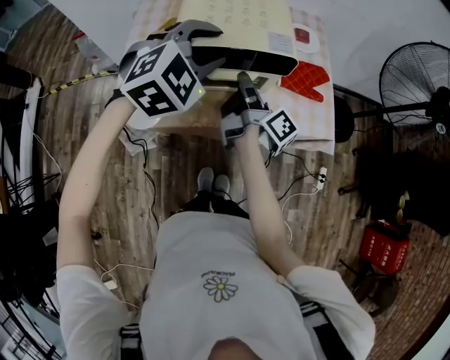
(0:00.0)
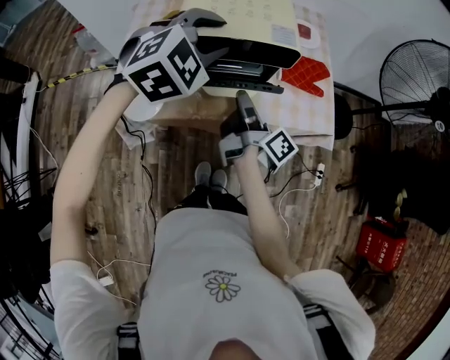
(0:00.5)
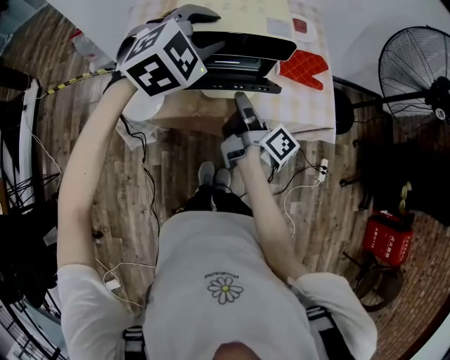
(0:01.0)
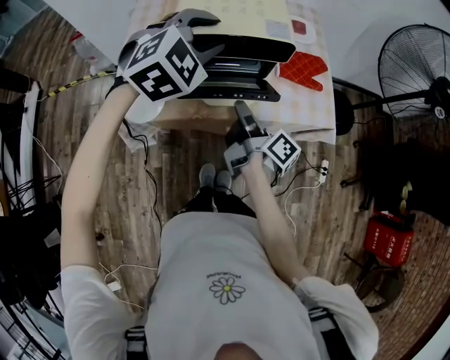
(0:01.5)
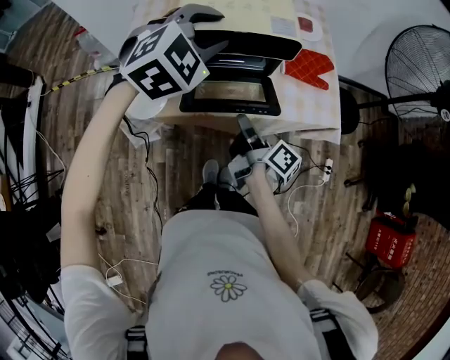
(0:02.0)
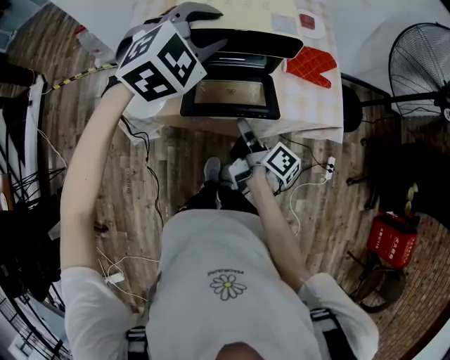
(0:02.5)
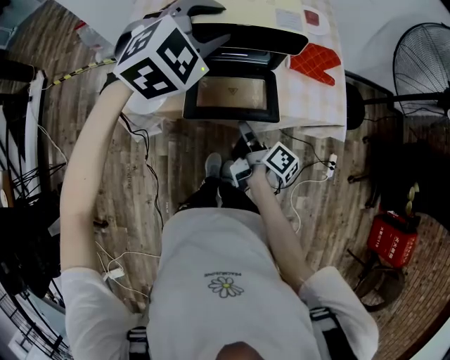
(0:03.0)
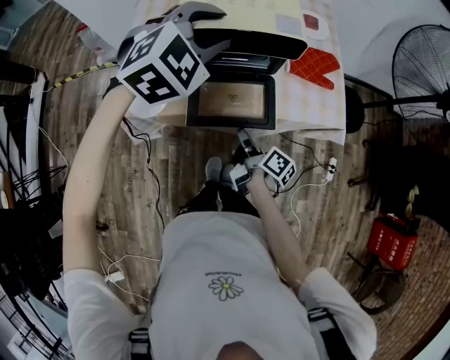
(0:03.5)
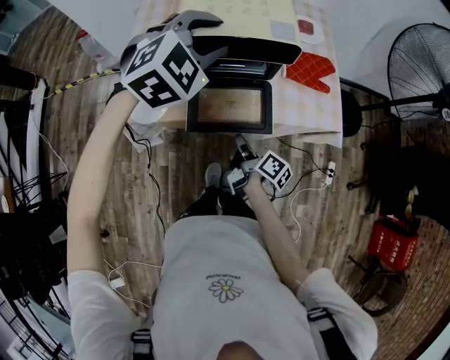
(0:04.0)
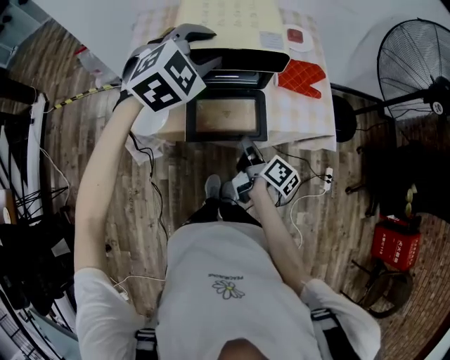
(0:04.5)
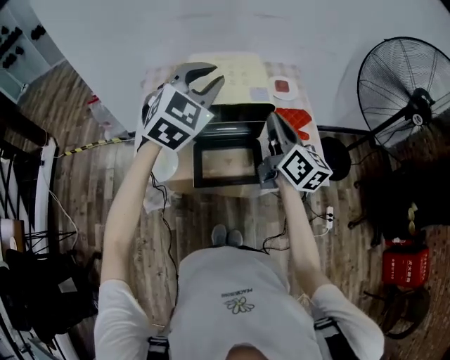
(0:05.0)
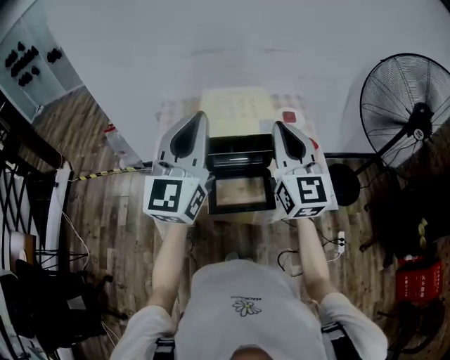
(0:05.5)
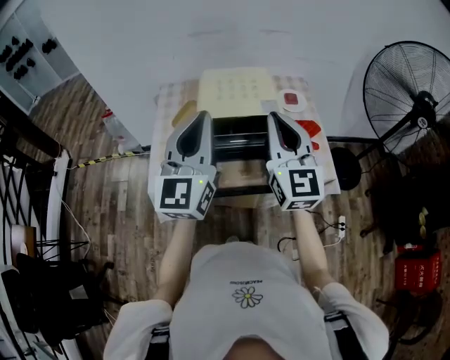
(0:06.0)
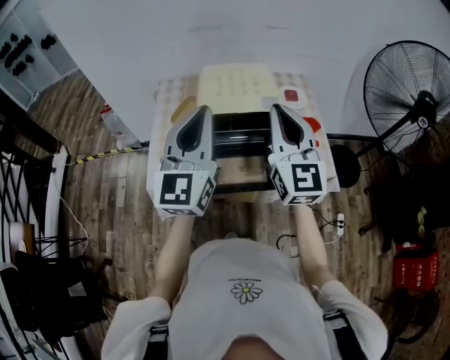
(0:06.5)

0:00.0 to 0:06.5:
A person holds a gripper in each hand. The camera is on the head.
0:00.0 to 0:02.0: The right gripper heads backward and downward, covering roughly 15 cm.
0:02.0 to 0:04.5: The right gripper moves about 10 cm downward and comes back.
0:04.5 to 0:06.5: The right gripper is displaced upward by roughly 35 cm, and rolls counterclockwise, seen from behind, by some 80 degrees; the left gripper goes approximately 15 cm upward and backward, points its fingers some 50 degrees further upward, and closes its fingers.

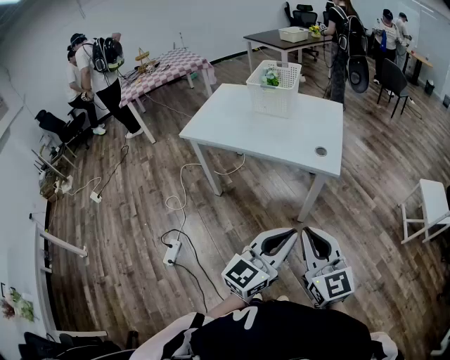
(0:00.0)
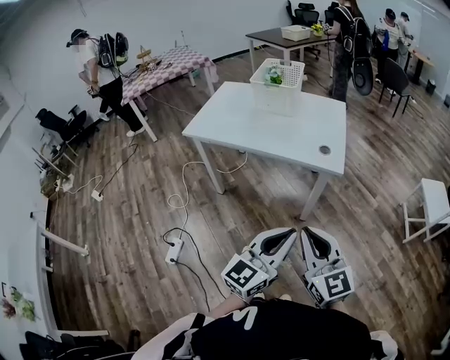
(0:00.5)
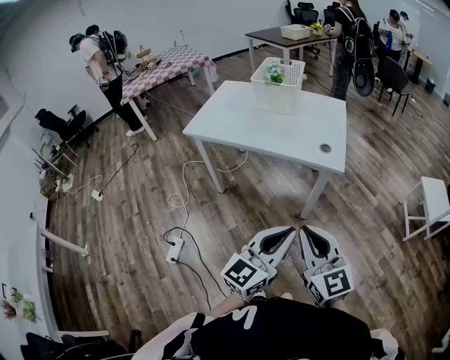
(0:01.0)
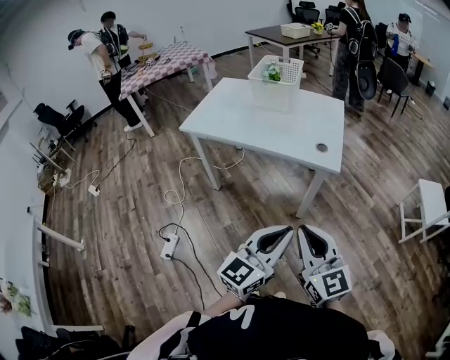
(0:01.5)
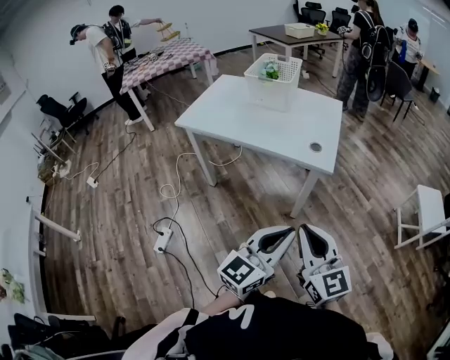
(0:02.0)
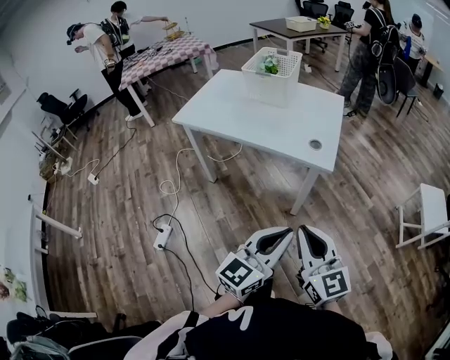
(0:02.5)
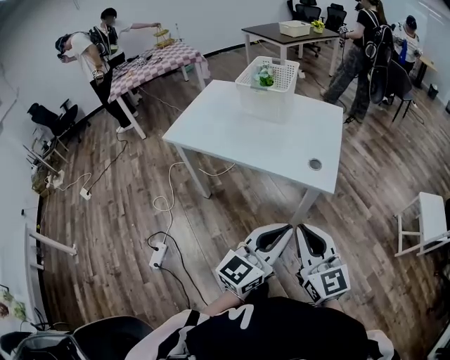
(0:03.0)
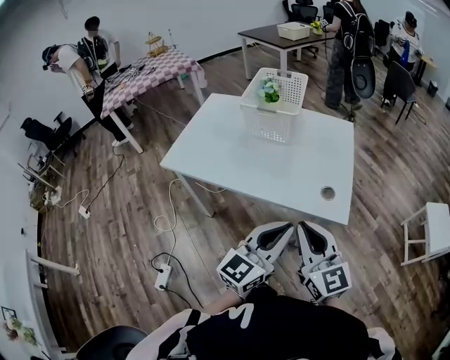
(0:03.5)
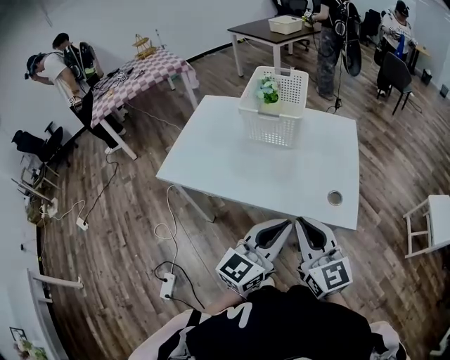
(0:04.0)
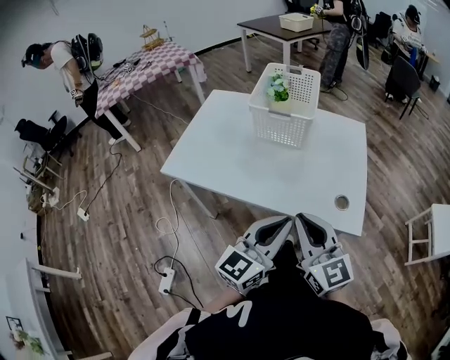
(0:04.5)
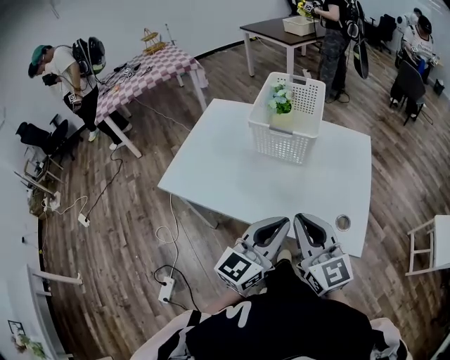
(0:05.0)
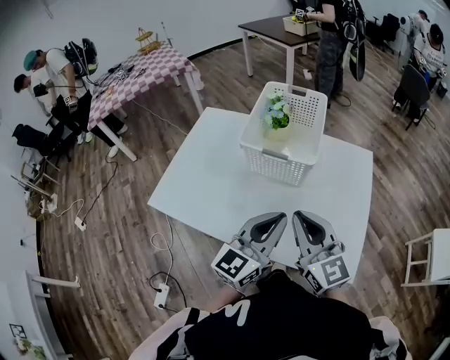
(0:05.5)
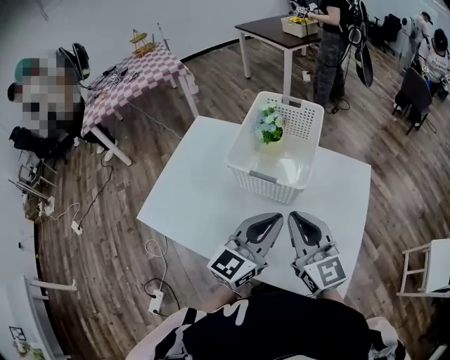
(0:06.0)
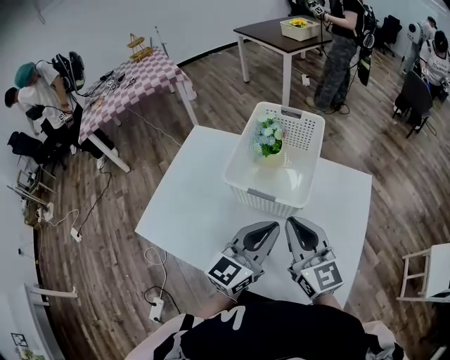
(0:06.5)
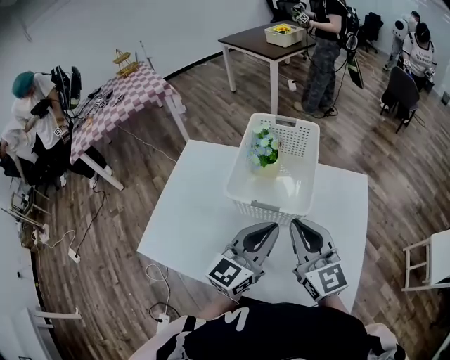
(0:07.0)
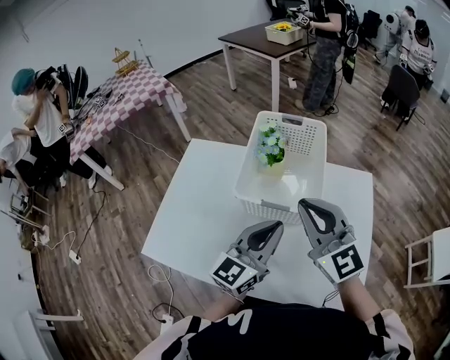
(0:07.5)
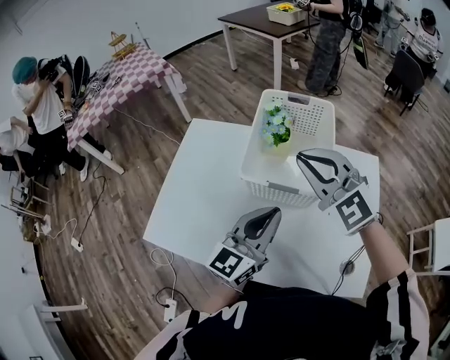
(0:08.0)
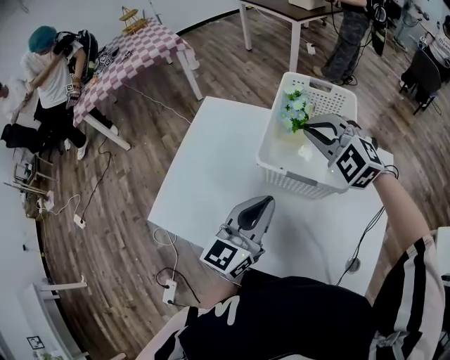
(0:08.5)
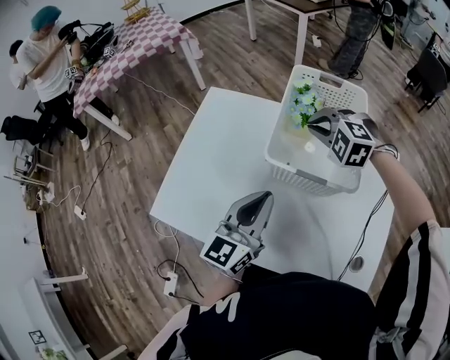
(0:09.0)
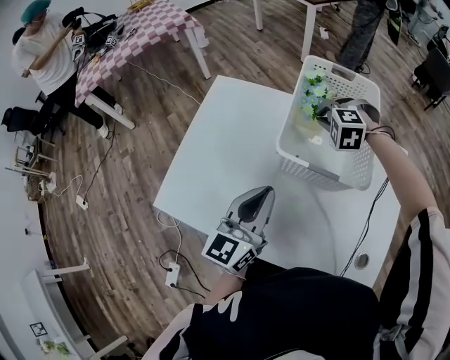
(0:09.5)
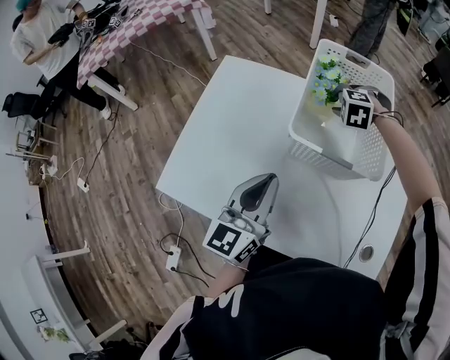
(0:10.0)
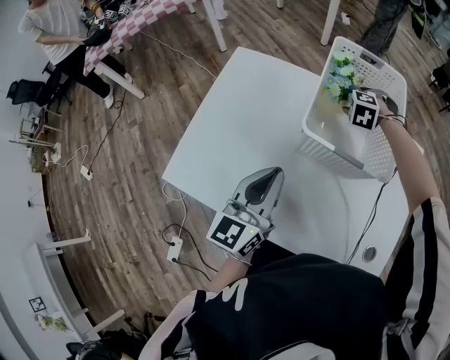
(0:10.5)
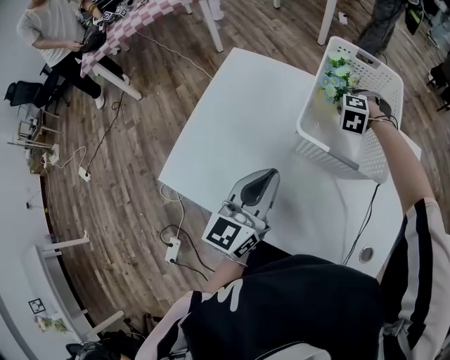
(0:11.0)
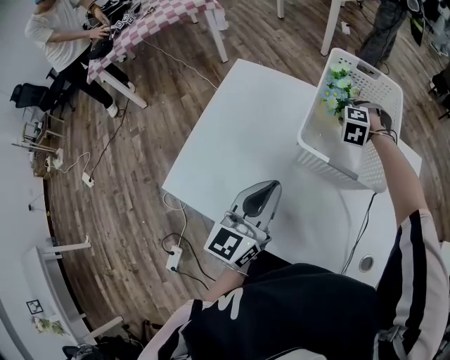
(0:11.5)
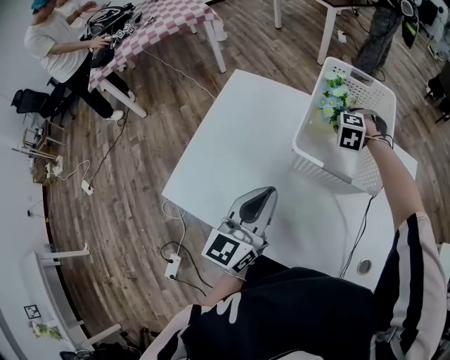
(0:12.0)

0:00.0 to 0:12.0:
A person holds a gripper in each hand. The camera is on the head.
0:00.0 to 0:02.0: There are only small adjustments of the grippers.
0:02.0 to 0:04.0: Both grippers travel together forward and to the left, some 35 cm.
0:04.0 to 0:06.0: The two grippers go some 25 cm forward.
0:06.0 to 0:08.0: The right gripper goes approximately 15 cm forward, to the left and upward, and rotates approximately 40 degrees. Meanwhile the left gripper heads to the left, covering about 5 cm.
0:08.0 to 0:10.0: The right gripper moves downward and forward, roughly 30 cm, tilts its fingers about 60 degrees downward, and opens up. The left gripper goes approximately 10 cm to the left.
0:10.0 to 0:12.0: The grippers make only small movements.

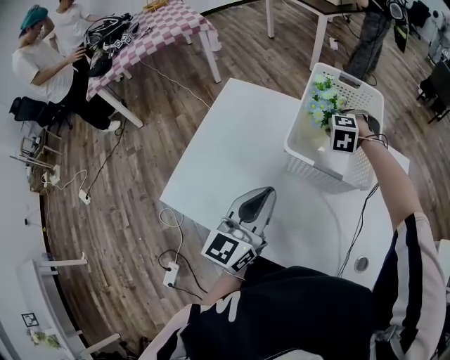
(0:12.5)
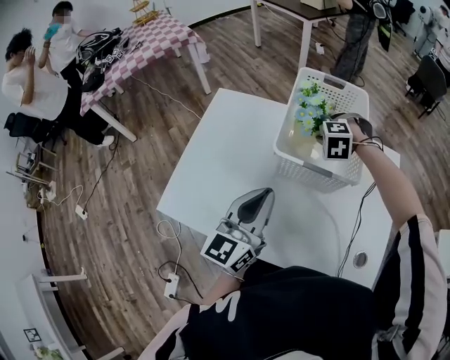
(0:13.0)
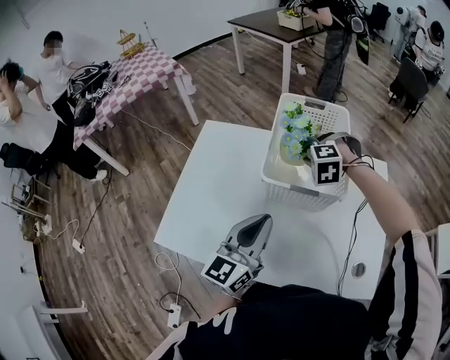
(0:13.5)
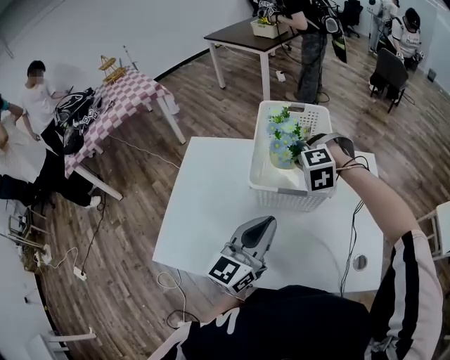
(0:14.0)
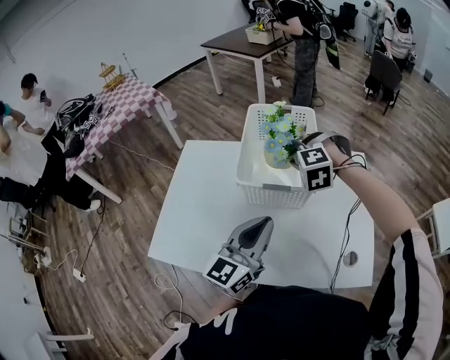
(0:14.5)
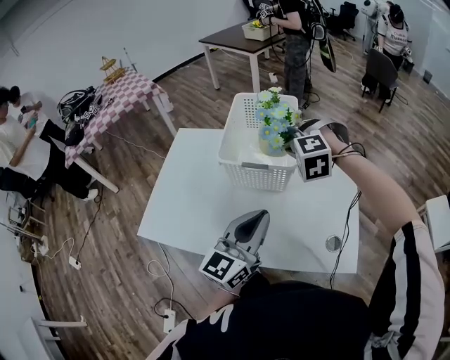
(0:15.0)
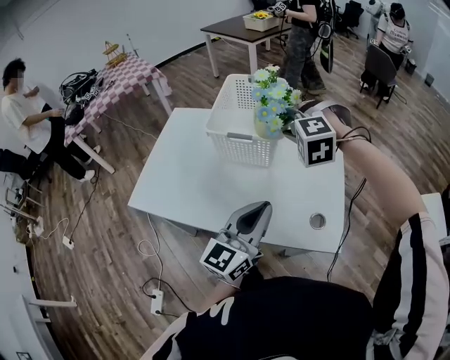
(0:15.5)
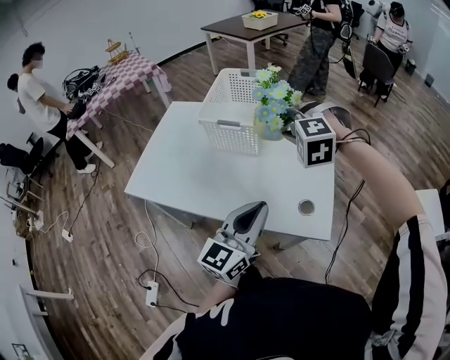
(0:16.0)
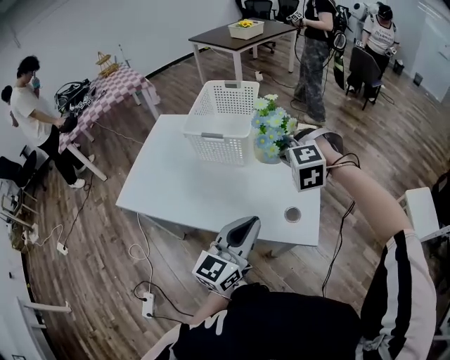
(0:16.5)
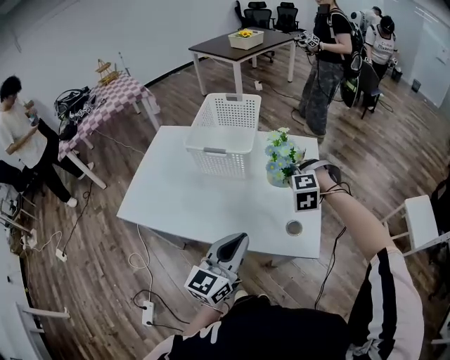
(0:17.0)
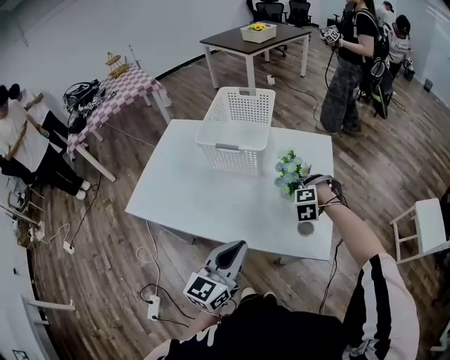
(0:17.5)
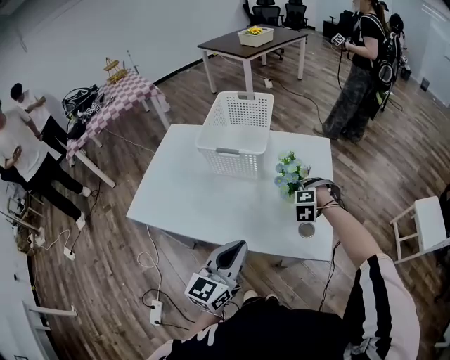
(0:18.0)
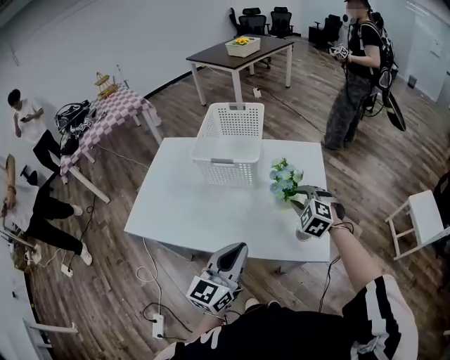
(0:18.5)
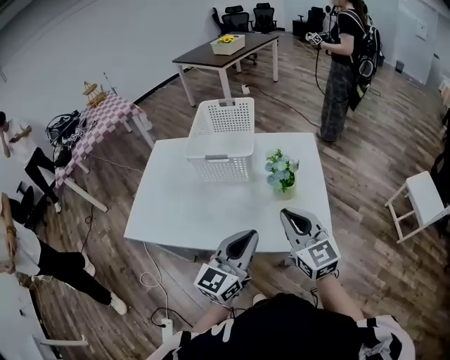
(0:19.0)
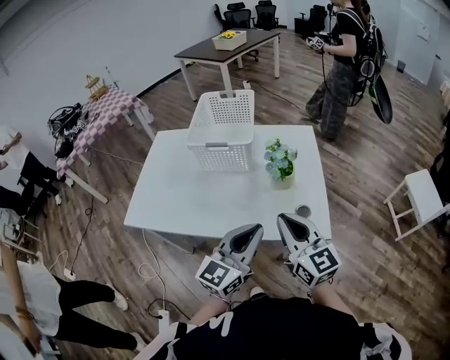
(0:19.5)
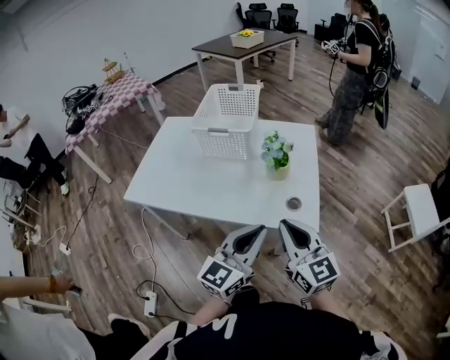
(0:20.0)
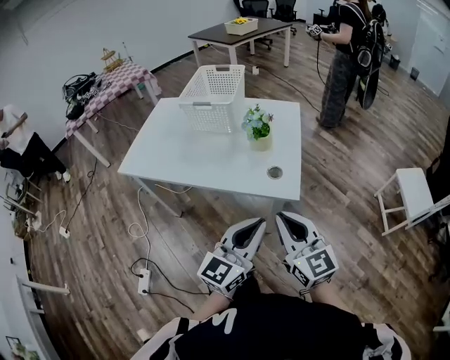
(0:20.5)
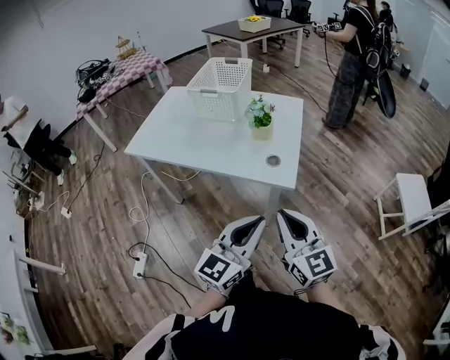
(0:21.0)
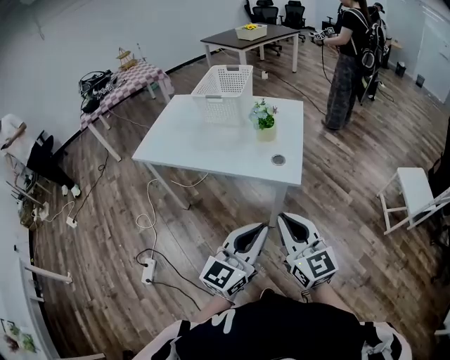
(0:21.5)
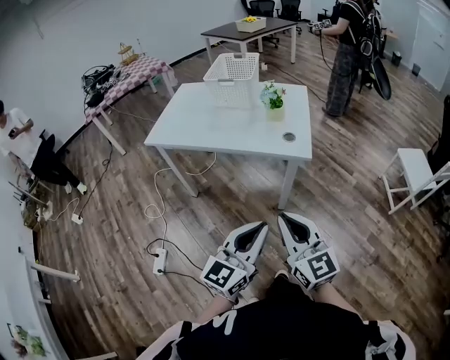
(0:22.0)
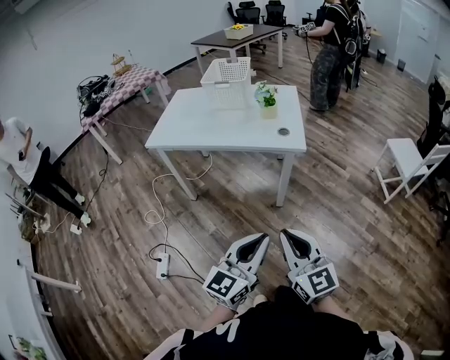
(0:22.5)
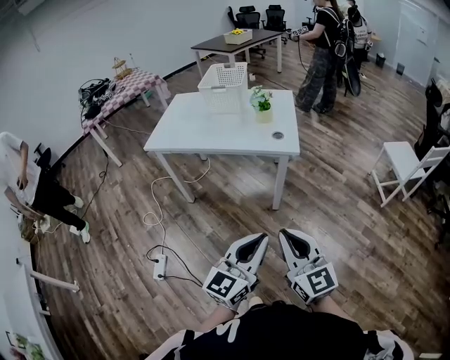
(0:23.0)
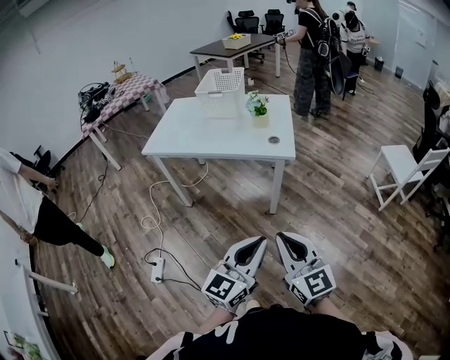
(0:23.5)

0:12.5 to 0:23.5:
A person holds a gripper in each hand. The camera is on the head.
0:12.5 to 0:14.5: The left gripper heads to the right, covering about 10 cm. Meanwhile the right gripper travels upward, backward and to the right by approximately 15 cm.
0:14.5 to 0:16.0: The left gripper moves to the right and backward, about 25 cm. Meanwhile the right gripper is displaced backward and to the right by approximately 20 cm.
0:16.0 to 0:18.0: The left gripper ends up approximately 5 cm from where it was. The right gripper is displaced downward by roughly 25 cm, and swivels some 20 degrees.
0:18.0 to 0:20.0: The left gripper shifts about 10 cm to the right and backward; the right gripper is displaced backward and upward by roughly 35 cm, and points its fingers roughly 60 degrees further upward.
0:20.0 to 0:21.5: Both grippers move backward, approximately 20 cm.
0:21.5 to 0:23.5: Both grippers move backward, roughly 20 cm.
